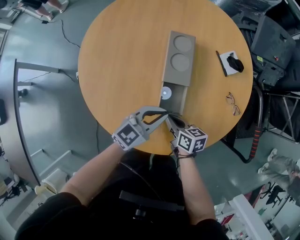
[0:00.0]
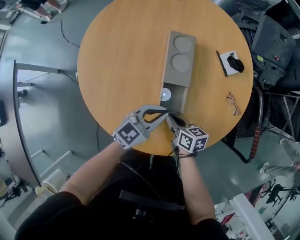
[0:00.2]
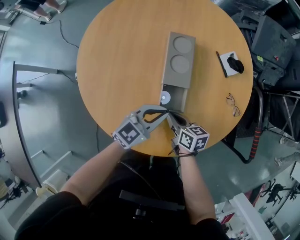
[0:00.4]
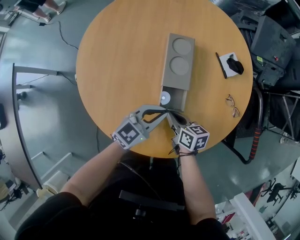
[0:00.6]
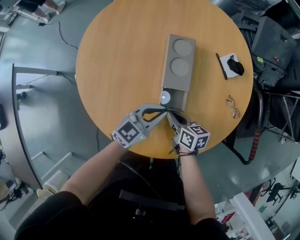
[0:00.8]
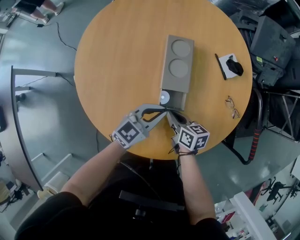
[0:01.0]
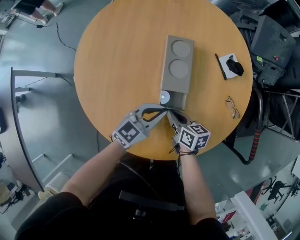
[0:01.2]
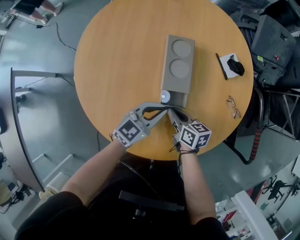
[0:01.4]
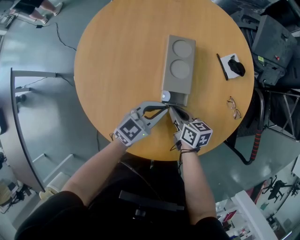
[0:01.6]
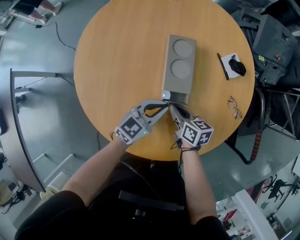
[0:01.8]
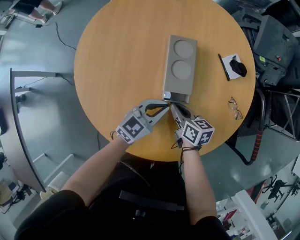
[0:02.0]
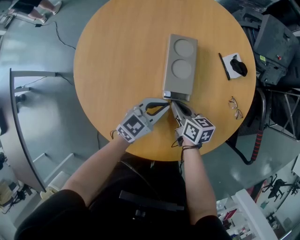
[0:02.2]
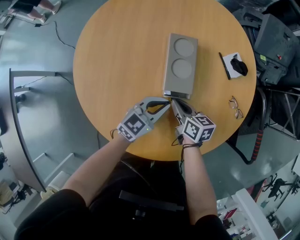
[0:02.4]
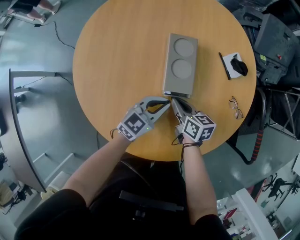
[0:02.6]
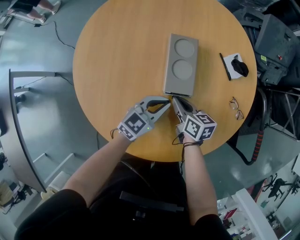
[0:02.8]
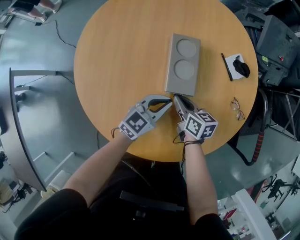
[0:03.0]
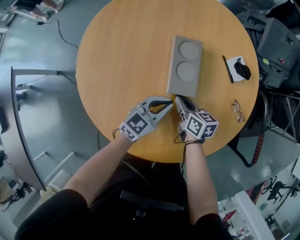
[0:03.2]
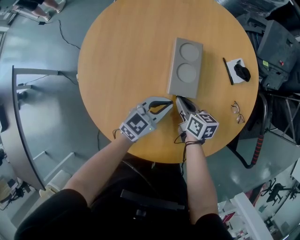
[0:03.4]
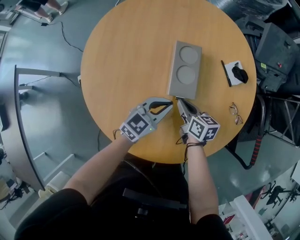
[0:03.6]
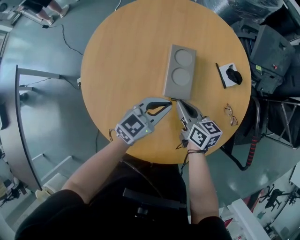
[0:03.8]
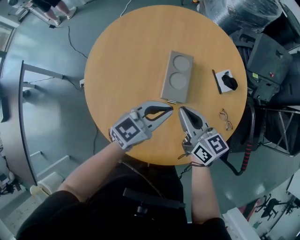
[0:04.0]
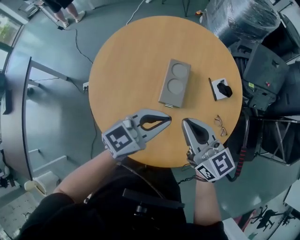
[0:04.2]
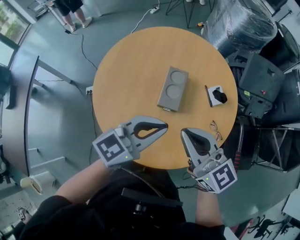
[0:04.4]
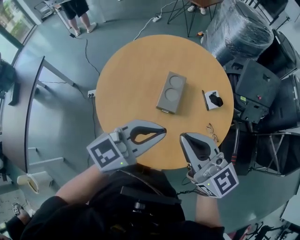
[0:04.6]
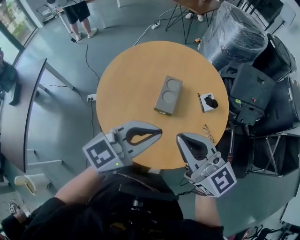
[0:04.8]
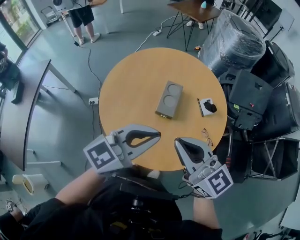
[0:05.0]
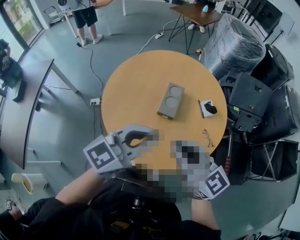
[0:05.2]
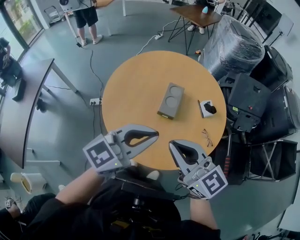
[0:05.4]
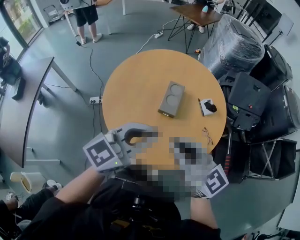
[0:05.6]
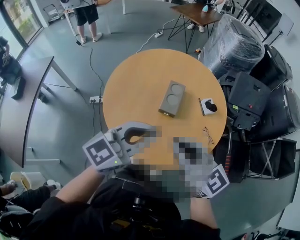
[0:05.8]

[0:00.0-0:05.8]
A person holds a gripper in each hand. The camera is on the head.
0.0 to 1.4 s: Both grippers move forward, approximately 5 cm.
1.4 to 2.8 s: The left gripper ends up about 5 cm from where it was; the right gripper shifts roughly 5 cm forward.
2.8 to 4.4 s: Both grippers travel together upward, approximately 35 cm. The right gripper rotates roughly 50 degrees.
4.4 to 5.8 s: The two grippers go roughly 20 cm backward and upward.

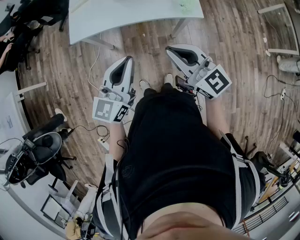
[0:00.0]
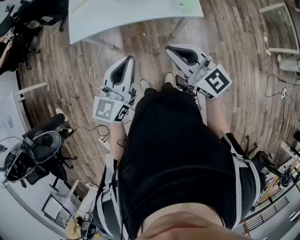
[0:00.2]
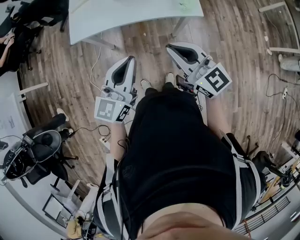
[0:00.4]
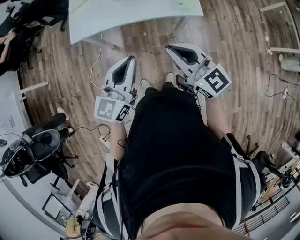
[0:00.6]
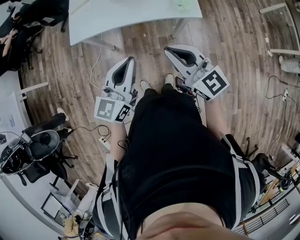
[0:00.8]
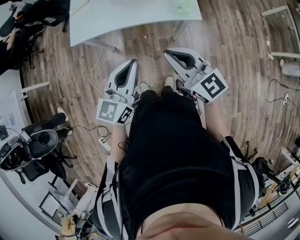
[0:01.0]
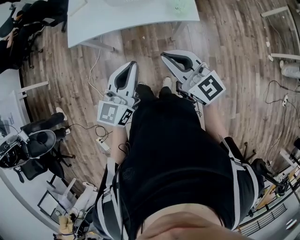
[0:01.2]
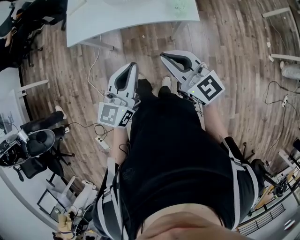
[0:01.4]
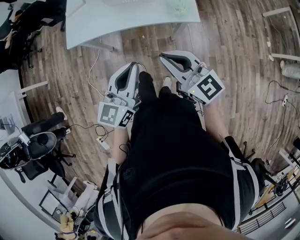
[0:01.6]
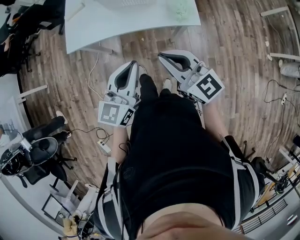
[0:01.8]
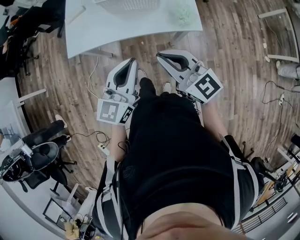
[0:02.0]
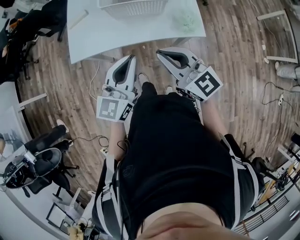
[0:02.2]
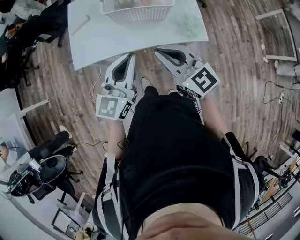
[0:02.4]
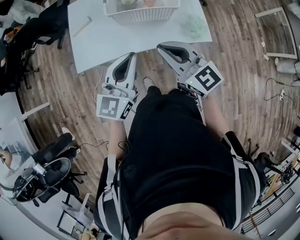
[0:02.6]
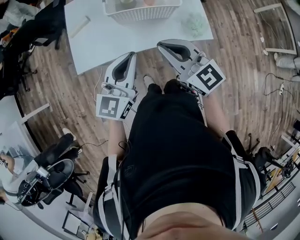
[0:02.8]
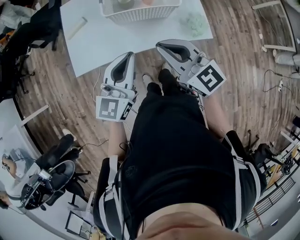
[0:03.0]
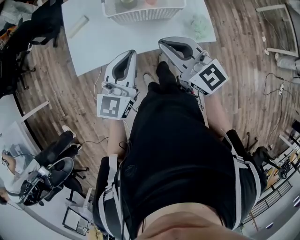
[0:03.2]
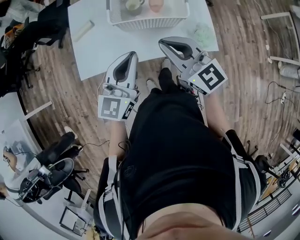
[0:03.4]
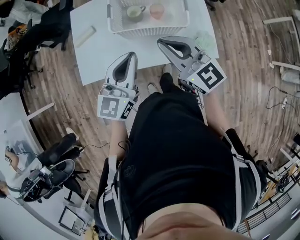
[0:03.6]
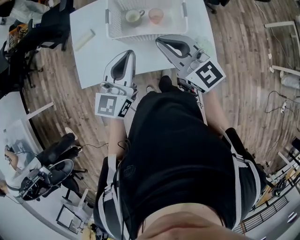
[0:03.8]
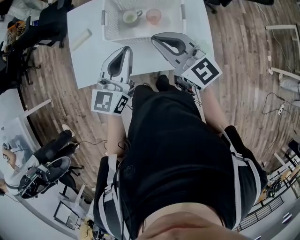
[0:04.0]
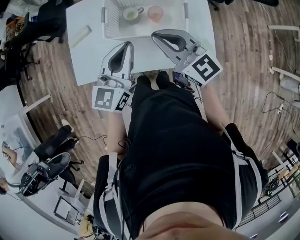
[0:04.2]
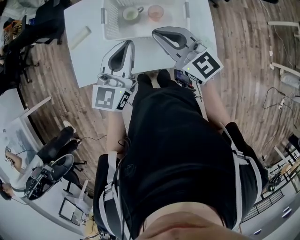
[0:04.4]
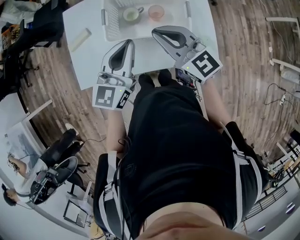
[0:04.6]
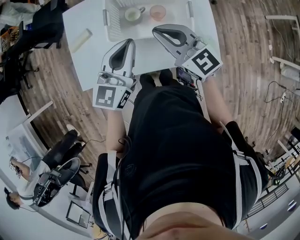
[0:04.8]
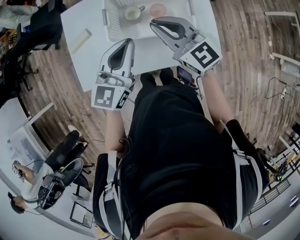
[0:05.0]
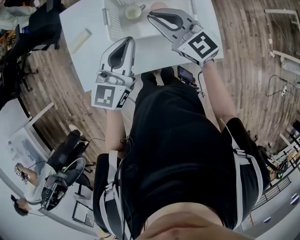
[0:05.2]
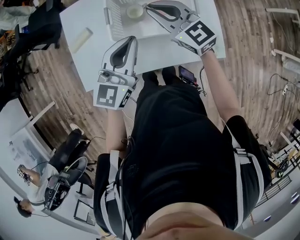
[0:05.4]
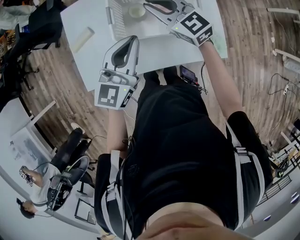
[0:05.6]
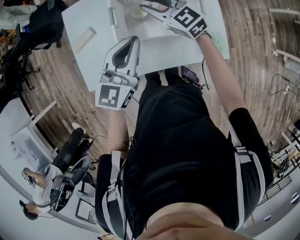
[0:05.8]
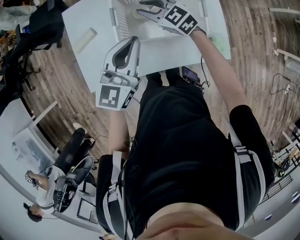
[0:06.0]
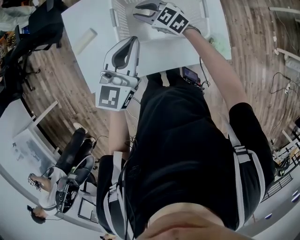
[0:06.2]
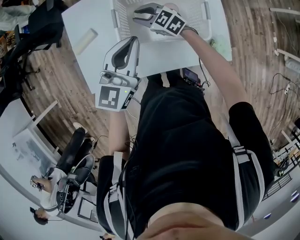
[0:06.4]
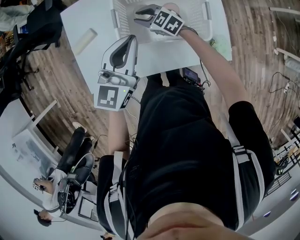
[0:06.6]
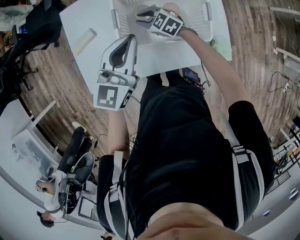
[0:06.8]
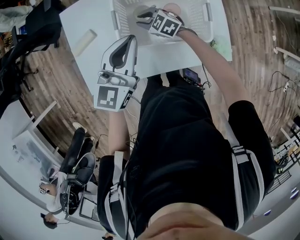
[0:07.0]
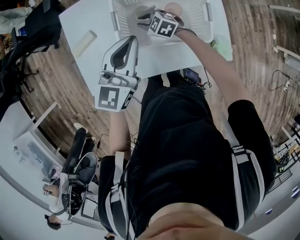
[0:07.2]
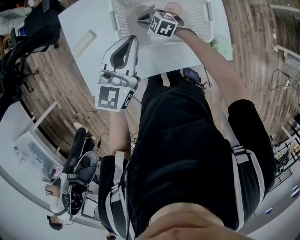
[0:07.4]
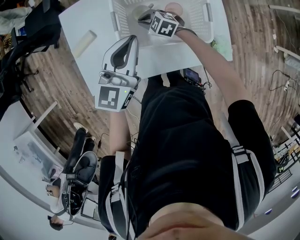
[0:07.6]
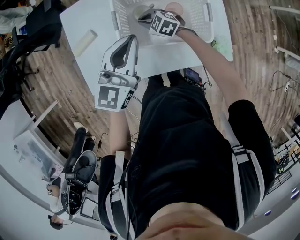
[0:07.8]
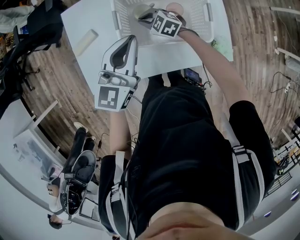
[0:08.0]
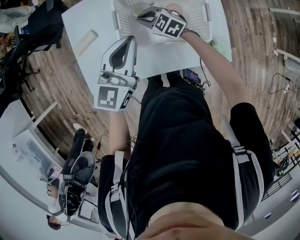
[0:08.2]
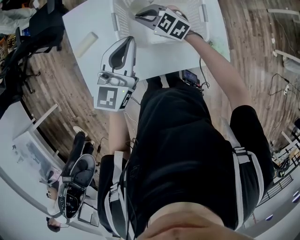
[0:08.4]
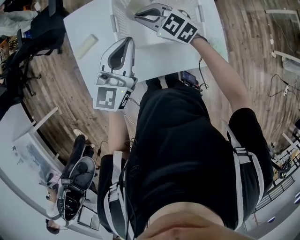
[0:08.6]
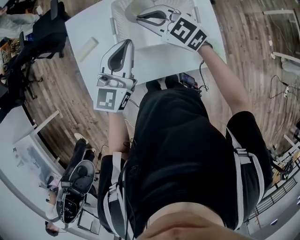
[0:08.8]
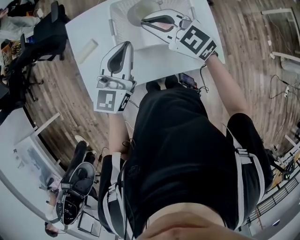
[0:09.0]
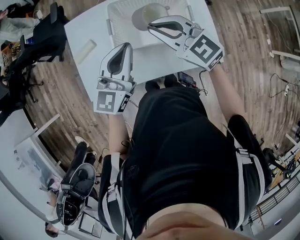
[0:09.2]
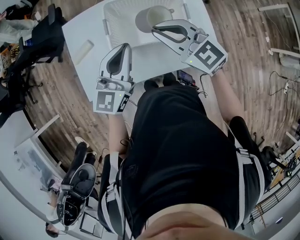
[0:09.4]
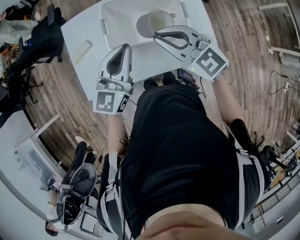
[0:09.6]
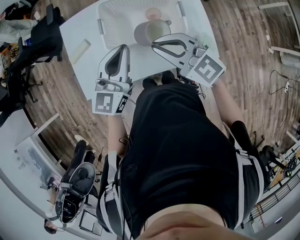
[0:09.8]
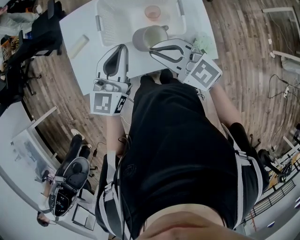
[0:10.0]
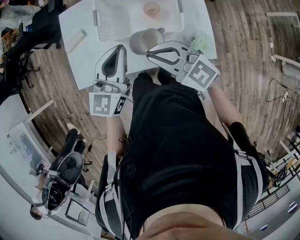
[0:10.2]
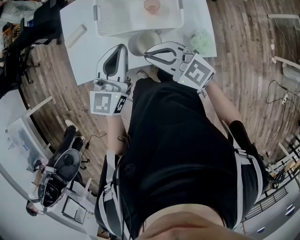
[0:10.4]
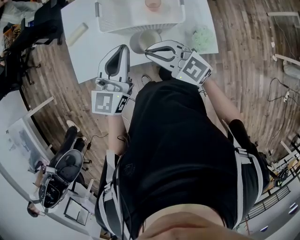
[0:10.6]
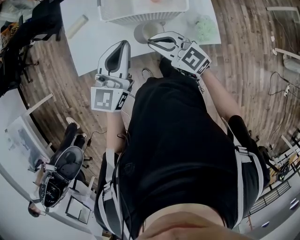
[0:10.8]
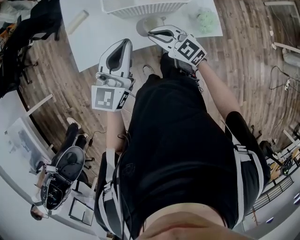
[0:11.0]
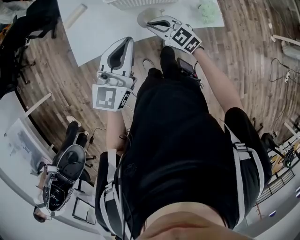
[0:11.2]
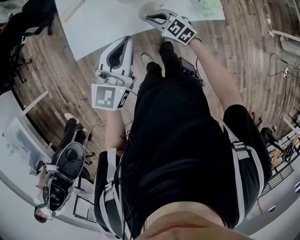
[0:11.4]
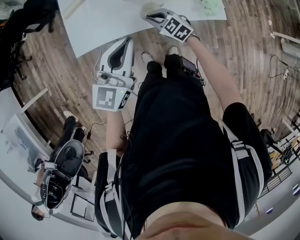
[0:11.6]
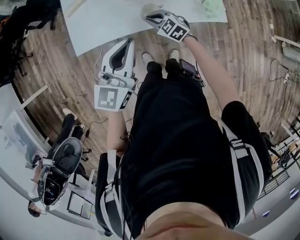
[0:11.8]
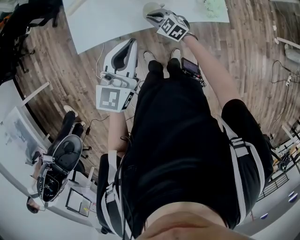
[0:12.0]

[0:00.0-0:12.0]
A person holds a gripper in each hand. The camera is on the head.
0.0 to 1.6 s: The right gripper goes roughly 5 cm to the right; the left gripper moves to the right, roughly 10 cm.
1.6 to 3.0 s: The grippers both shift forward and to the left by about 25 cm.
3.0 to 4.4 s: The grippers both shift forward by some 20 cm.
4.4 to 6.0 s: The right gripper goes roughly 25 cm forward, downward and to the left, and changes its angle by roughly 20 degrees. Meanwhile the left gripper is displaced forward by some 5 cm.
6.0 to 7.6 s: The right gripper travels downward by some 15 cm, and swivels roughly 20 degrees.
7.6 to 9.0 s: The right gripper goes roughly 30 cm upward, and rotates some 30 degrees, while the left gripper shifts by some 5 cm.
9.0 to 10.4 s: The right gripper goes roughly 20 cm backward, while the left gripper moves backward, about 10 cm.
10.4 to 12.0 s: The left gripper moves backward and to the left, some 20 cm. Meanwhile the right gripper goes roughly 25 cm downward, and rotates about 30 degrees.

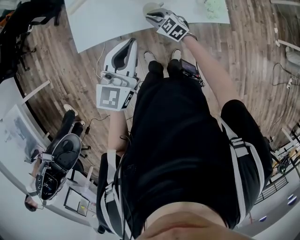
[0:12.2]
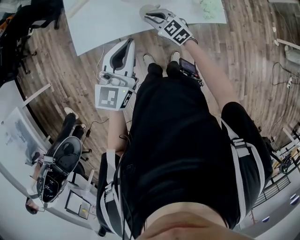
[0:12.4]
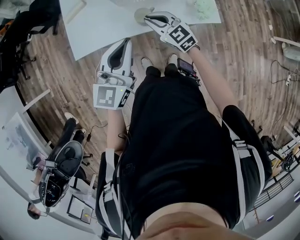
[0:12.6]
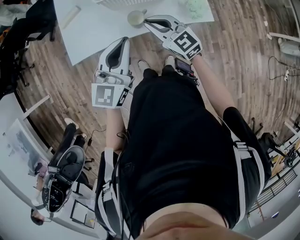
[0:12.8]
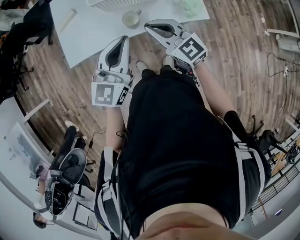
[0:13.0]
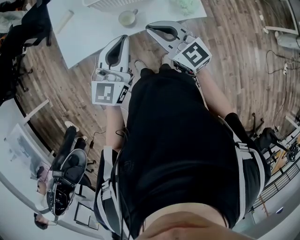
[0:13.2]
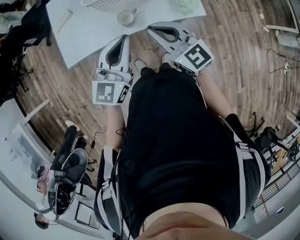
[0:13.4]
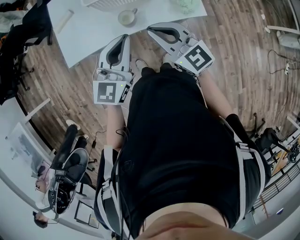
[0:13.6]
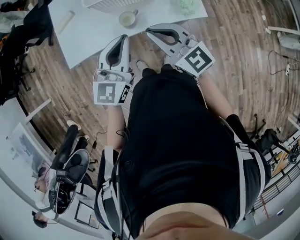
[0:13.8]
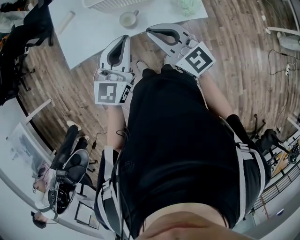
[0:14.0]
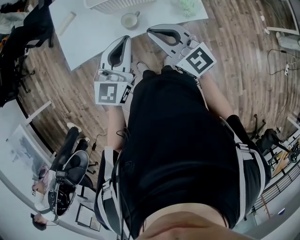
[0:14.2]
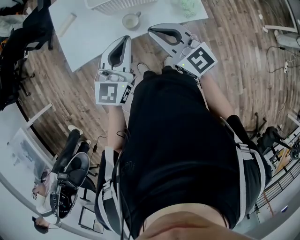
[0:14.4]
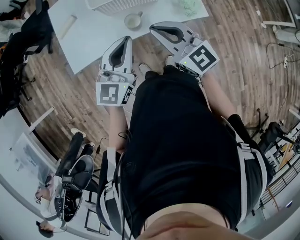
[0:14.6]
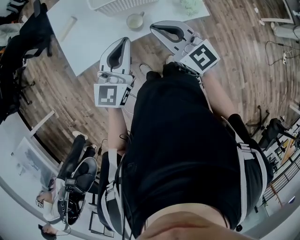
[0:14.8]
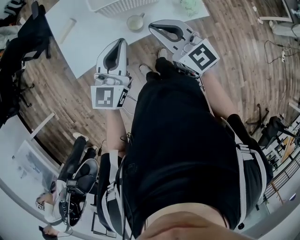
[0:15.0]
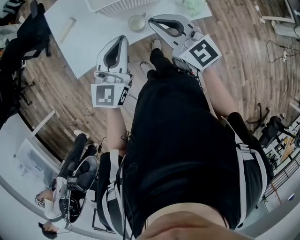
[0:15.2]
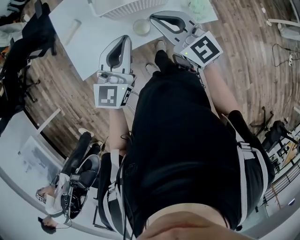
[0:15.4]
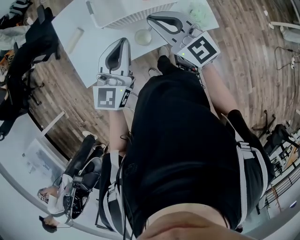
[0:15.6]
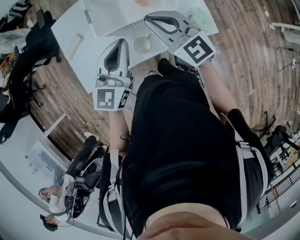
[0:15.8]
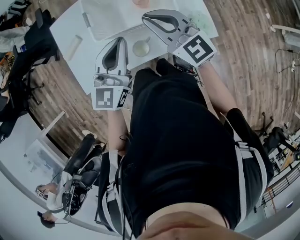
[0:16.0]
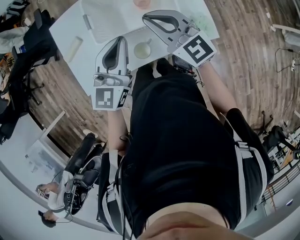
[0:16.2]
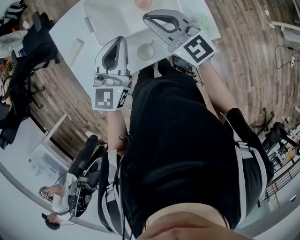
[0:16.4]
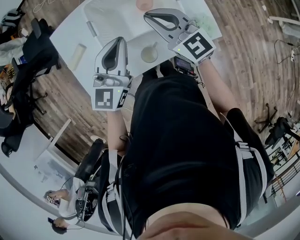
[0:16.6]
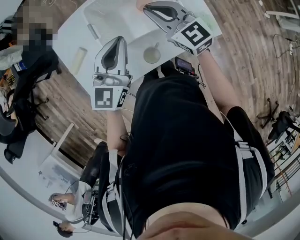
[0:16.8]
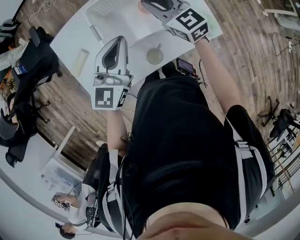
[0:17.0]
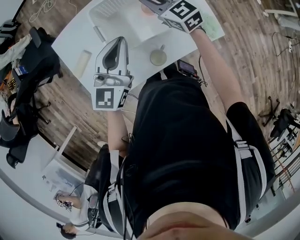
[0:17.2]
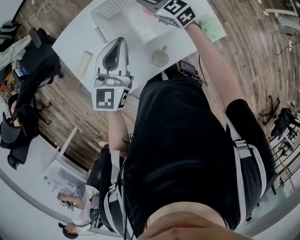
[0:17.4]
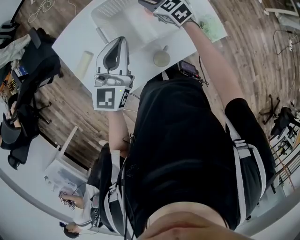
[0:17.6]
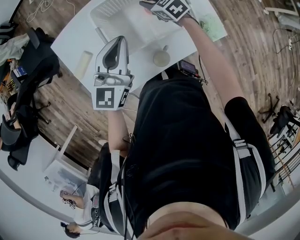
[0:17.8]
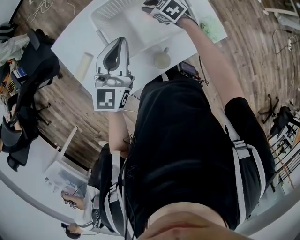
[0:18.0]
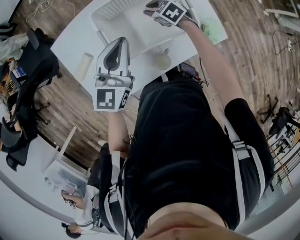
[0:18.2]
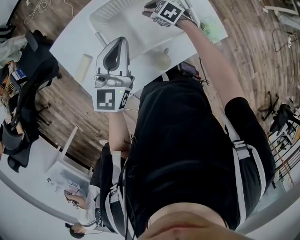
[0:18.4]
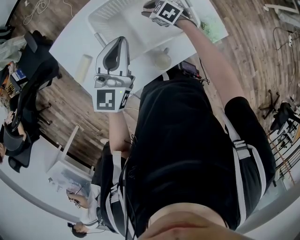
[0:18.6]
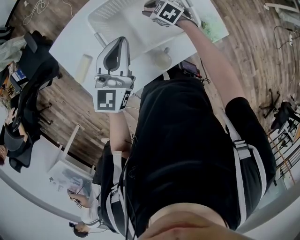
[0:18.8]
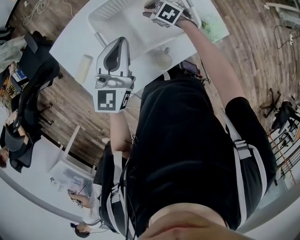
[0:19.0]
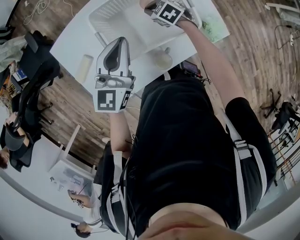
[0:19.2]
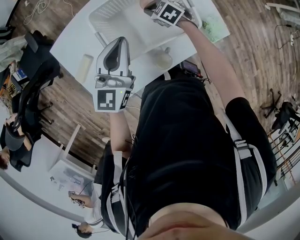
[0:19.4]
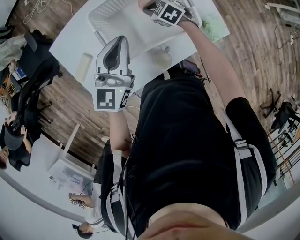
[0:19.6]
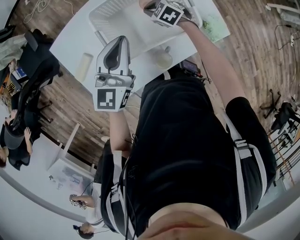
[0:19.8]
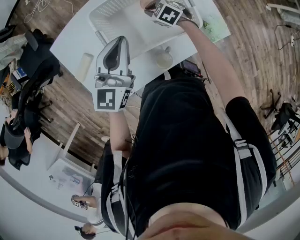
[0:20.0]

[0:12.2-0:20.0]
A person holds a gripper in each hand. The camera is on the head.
12.2 to 13.8 s: The right gripper shifts approximately 30 cm upward and backward, and angles its fingers upward, by roughly 30 degrees, while the left gripper moves to the right, about 5 cm.
13.8 to 15.4 s: The two grippers go approximately 10 cm forward.
15.4 to 16.8 s: The two grippers go approximately 20 cm forward.
16.8 to 18.4 s: The left gripper goes approximately 5 cm forward. The right gripper moves downward and forward, approximately 25 cm, tilts its fingers about 40 degrees downward, and opens up.
18.4 to 20.0 s: The grippers stay close to where they were, moving slightly.
